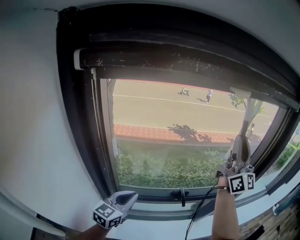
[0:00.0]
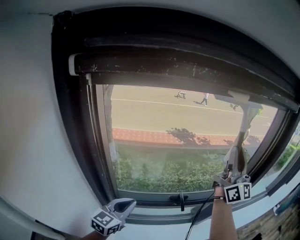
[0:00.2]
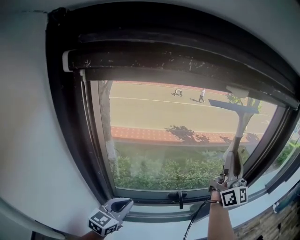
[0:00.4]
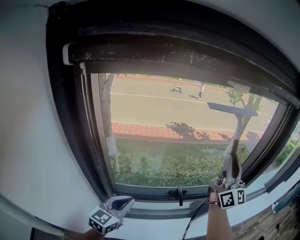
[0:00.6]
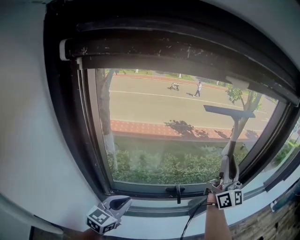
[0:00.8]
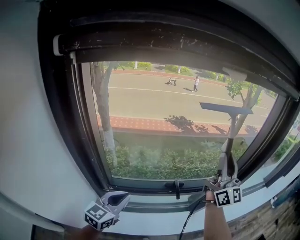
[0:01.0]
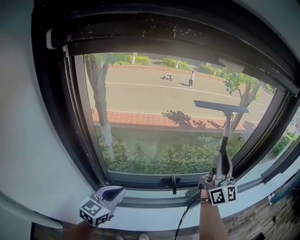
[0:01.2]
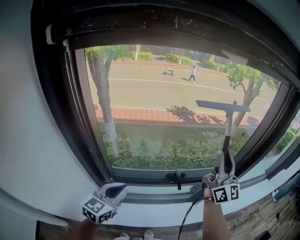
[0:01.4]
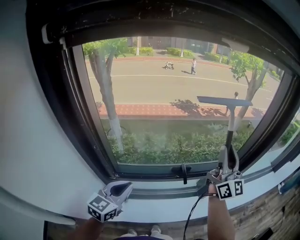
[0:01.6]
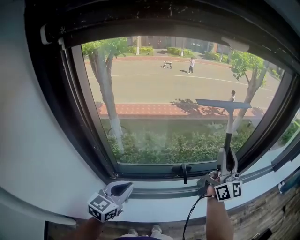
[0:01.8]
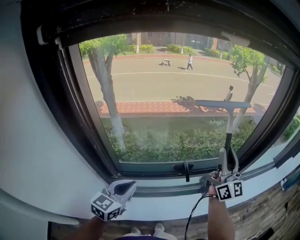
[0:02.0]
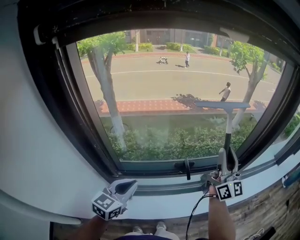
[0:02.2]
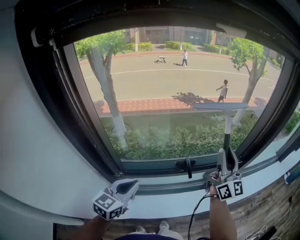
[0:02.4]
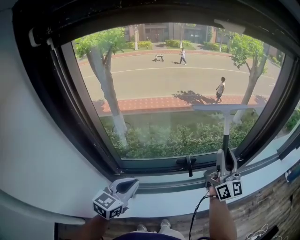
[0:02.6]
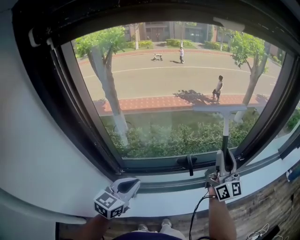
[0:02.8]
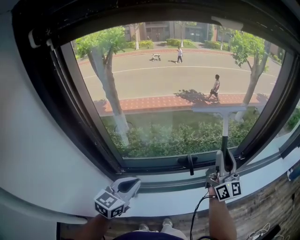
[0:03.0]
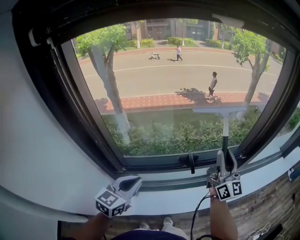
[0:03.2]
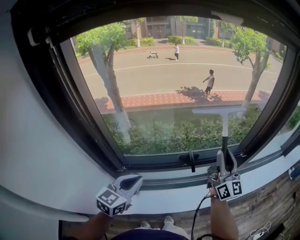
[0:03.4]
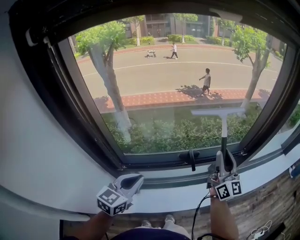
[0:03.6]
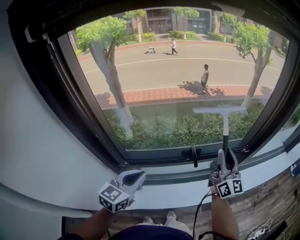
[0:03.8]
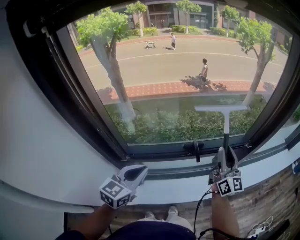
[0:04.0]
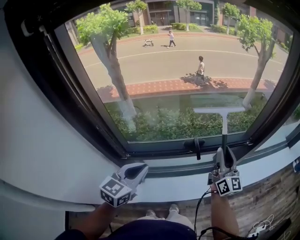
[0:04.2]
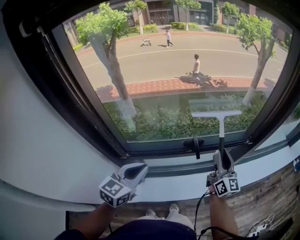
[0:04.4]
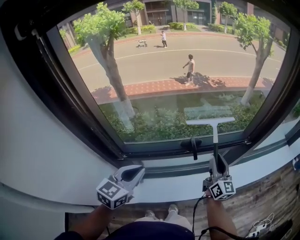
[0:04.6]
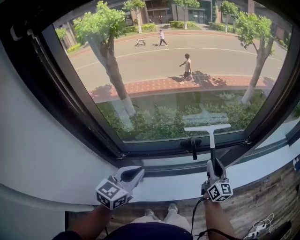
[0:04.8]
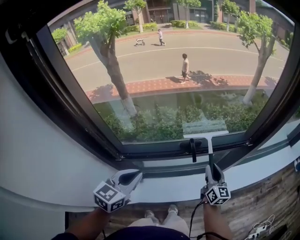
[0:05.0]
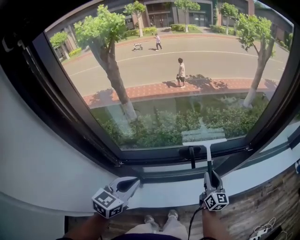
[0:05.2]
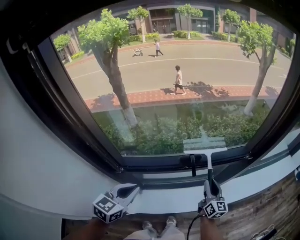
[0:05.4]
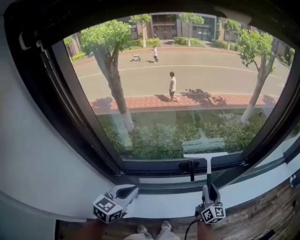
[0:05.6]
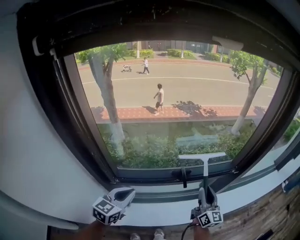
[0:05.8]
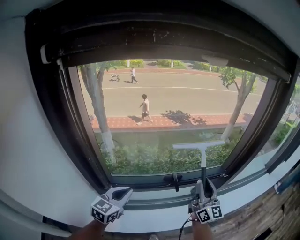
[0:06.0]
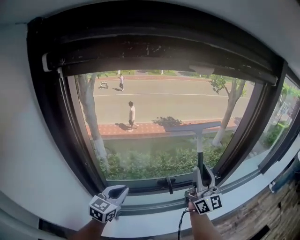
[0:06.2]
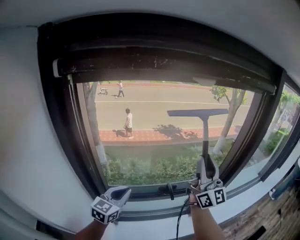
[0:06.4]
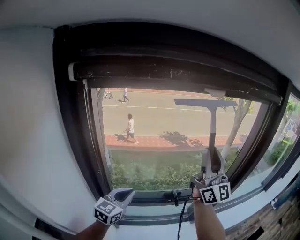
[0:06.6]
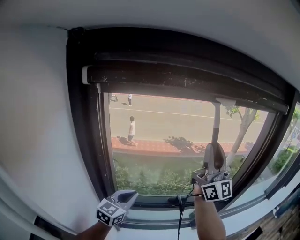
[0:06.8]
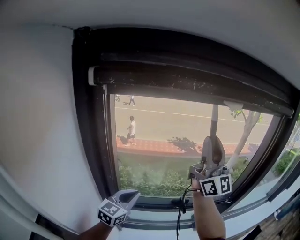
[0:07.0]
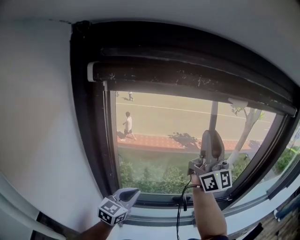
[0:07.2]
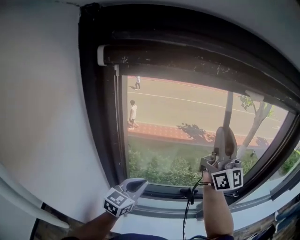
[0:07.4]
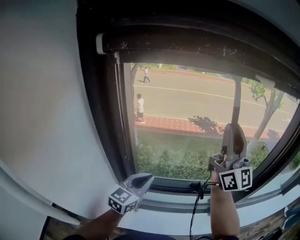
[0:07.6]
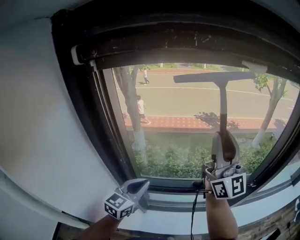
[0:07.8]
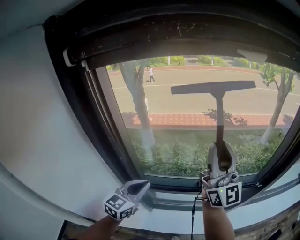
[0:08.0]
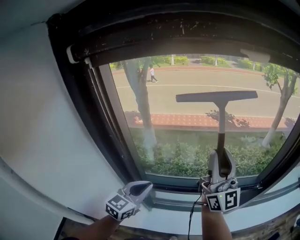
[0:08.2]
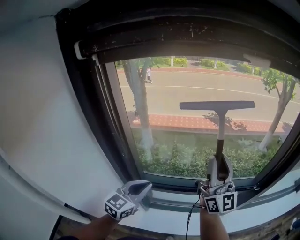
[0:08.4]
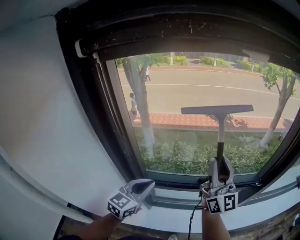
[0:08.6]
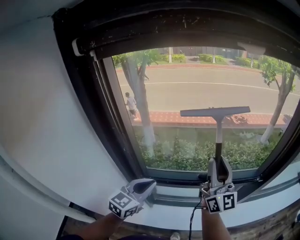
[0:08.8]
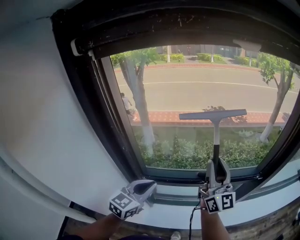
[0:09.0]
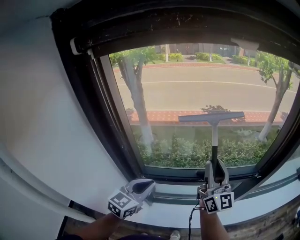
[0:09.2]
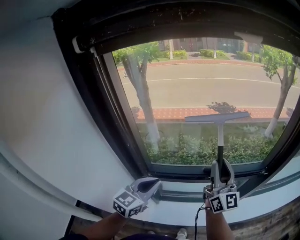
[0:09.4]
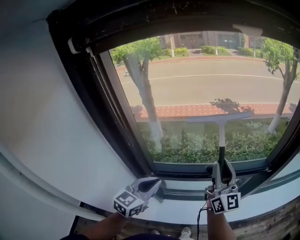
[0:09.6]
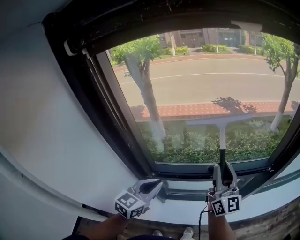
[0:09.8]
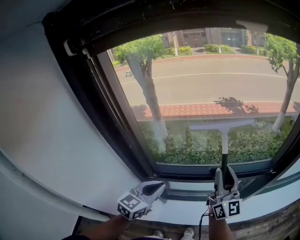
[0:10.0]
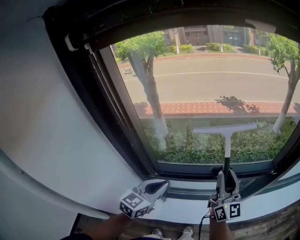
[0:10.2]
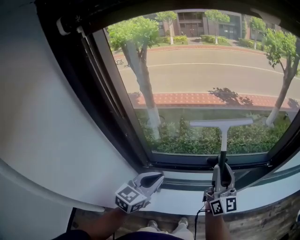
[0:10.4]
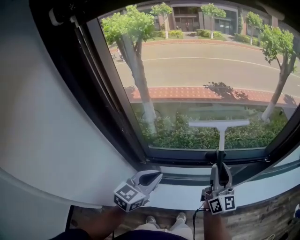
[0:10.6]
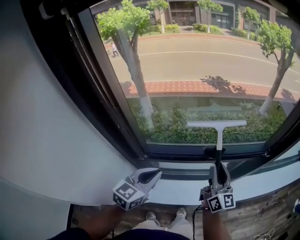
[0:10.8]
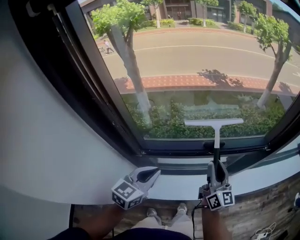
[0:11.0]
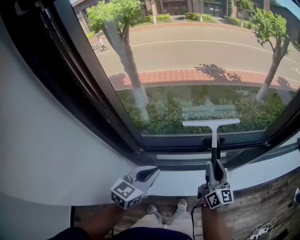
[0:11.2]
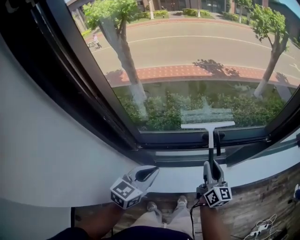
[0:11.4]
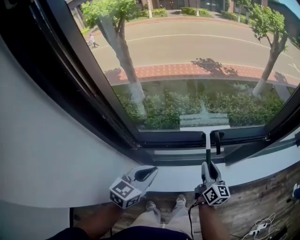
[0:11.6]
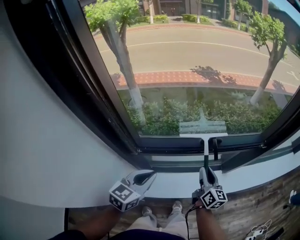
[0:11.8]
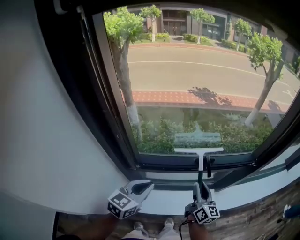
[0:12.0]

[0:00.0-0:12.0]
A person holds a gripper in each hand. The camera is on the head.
0:00.0 to 0:01.6: The right gripper heads downward, covering about 15 cm, while the left gripper moves approximately 5 cm.
0:01.6 to 0:03.0: The right gripper moves downward, approximately 10 cm.
0:03.0 to 0:04.4: The right gripper heads downward, covering roughly 10 cm.
0:04.4 to 0:06.0: The right gripper goes approximately 10 cm upward.
0:06.0 to 0:07.6: The left gripper shifts roughly 10 cm upward and to the left, while the right gripper shifts roughly 30 cm upward and to the left, and rotates roughly 30 degrees.
0:07.6 to 0:09.0: The left gripper is displaced backward by about 5 cm. Meanwhile the right gripper shifts some 20 cm downward.
0:09.0 to 0:10.4: The right gripper goes roughly 10 cm downward.
0:10.4 to 0:12.0: The right gripper travels downward by some 15 cm, and changes its angle by some 20 degrees. The left gripper travels downward by approximately 5 cm.

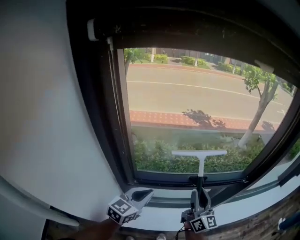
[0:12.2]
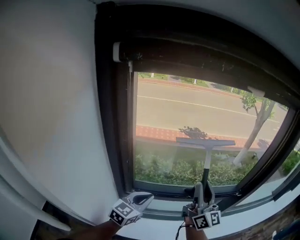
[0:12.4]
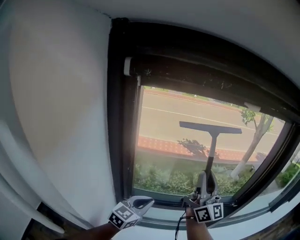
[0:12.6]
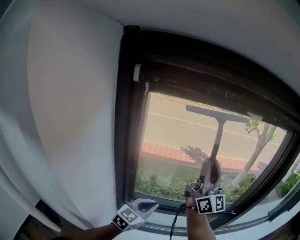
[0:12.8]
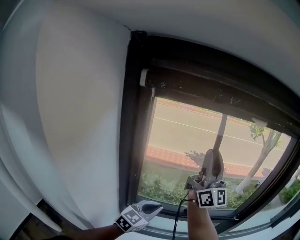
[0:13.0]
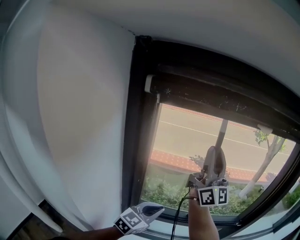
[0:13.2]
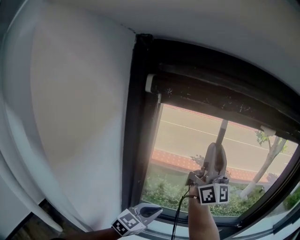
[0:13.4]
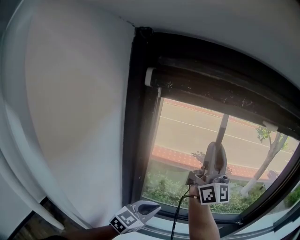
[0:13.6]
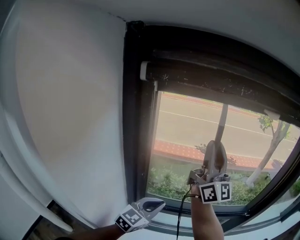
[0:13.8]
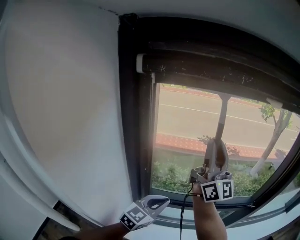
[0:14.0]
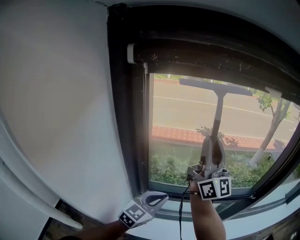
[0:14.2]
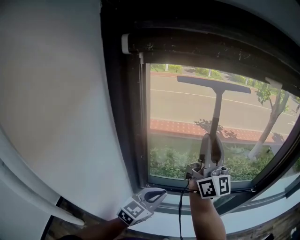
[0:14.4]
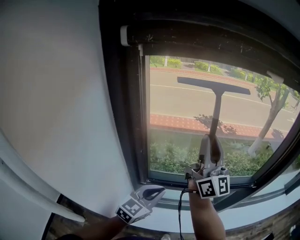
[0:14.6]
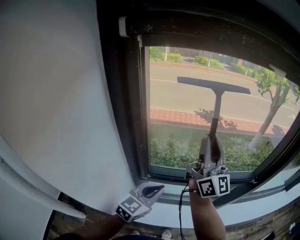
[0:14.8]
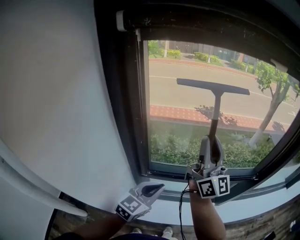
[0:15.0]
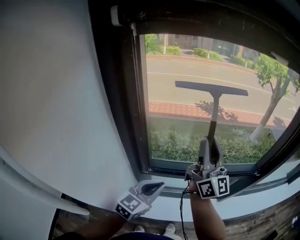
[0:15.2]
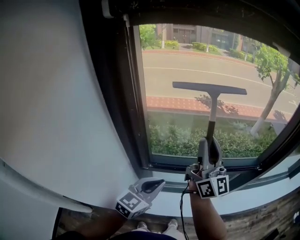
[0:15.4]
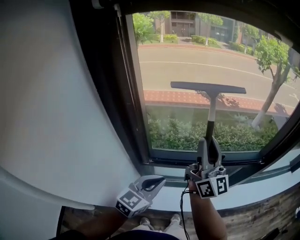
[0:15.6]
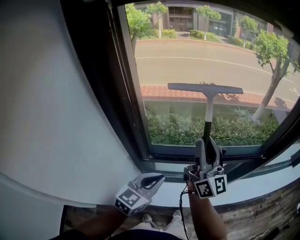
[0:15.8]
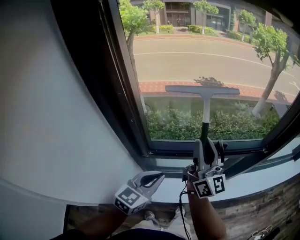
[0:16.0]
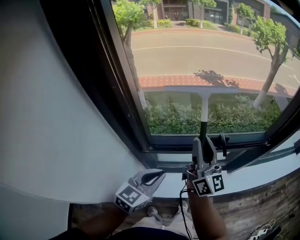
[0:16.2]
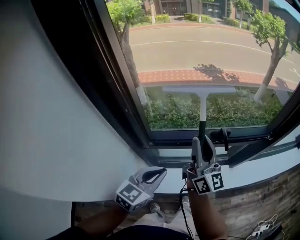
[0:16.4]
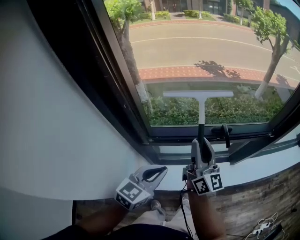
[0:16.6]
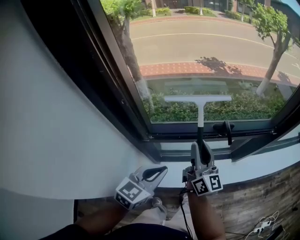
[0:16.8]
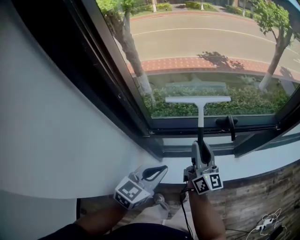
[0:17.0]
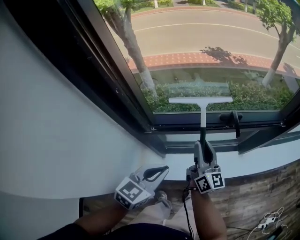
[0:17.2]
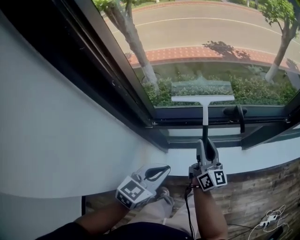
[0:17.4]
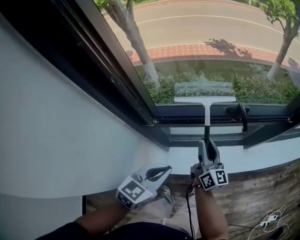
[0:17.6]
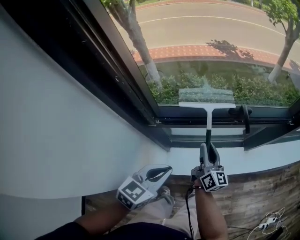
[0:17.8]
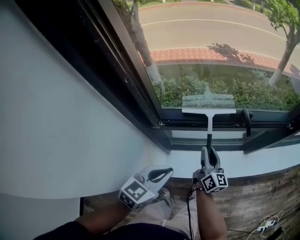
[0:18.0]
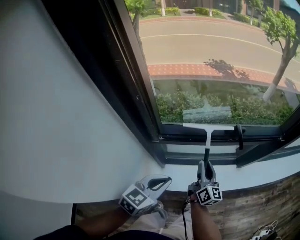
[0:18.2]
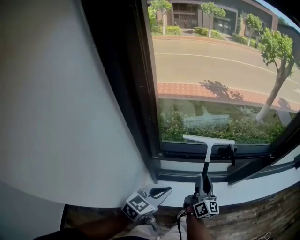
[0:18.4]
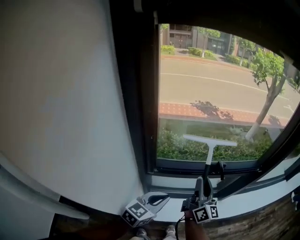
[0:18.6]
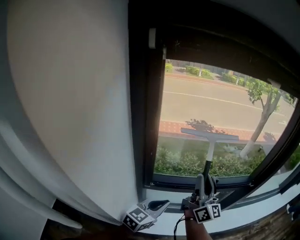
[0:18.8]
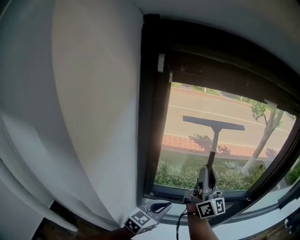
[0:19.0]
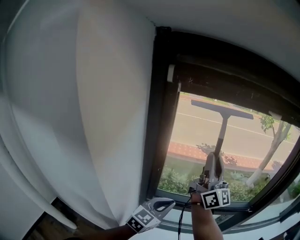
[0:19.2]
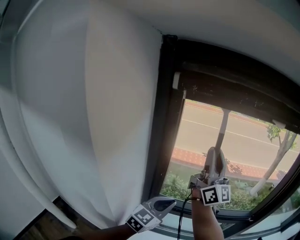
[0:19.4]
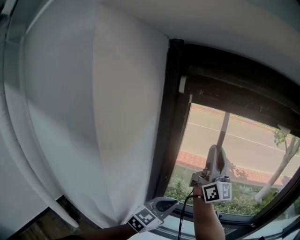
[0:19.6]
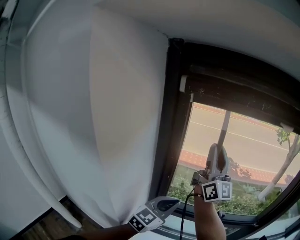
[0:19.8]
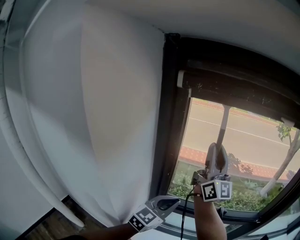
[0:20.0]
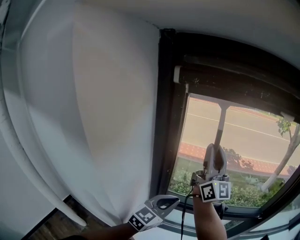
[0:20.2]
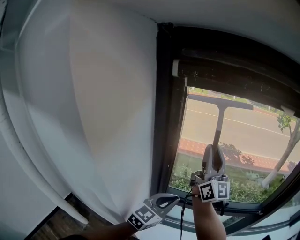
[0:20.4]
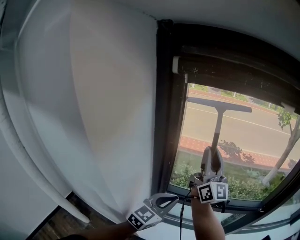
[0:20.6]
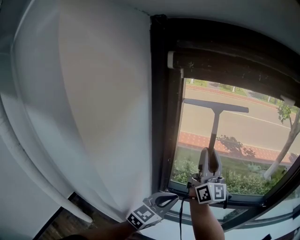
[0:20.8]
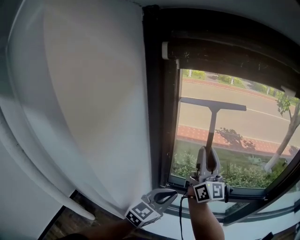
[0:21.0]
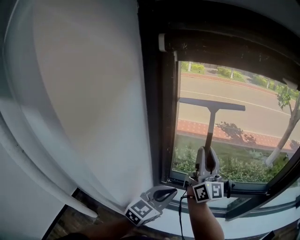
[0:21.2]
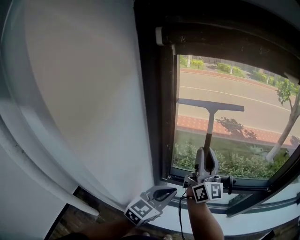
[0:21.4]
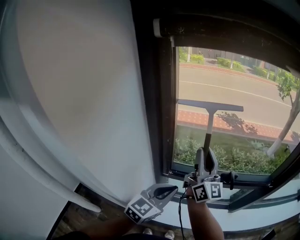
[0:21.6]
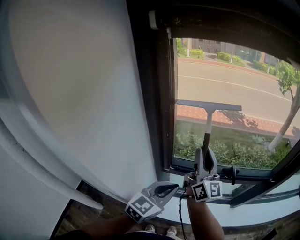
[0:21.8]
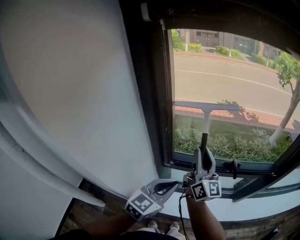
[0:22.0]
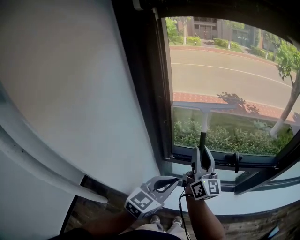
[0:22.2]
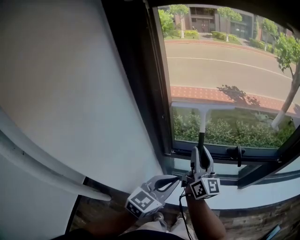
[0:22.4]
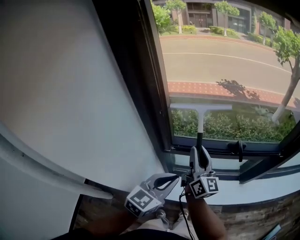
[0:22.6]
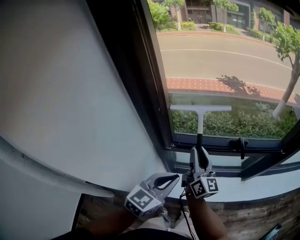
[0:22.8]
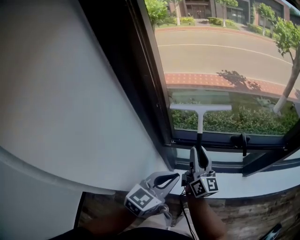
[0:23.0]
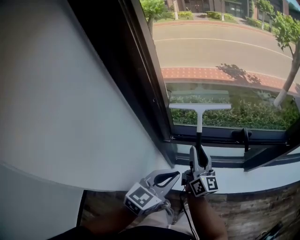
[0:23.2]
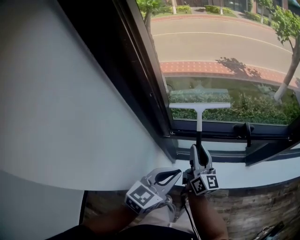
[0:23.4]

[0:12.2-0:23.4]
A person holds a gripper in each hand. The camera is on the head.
0:12.2 to 0:13.8: The right gripper is displaced upward by approximately 30 cm, and angles its fingers upward, by about 30 degrees, while the left gripper goes approximately 10 cm upward.
0:13.8 to 0:15.4: The left gripper is displaced downward by roughly 5 cm; the right gripper is displaced downward by roughly 15 cm.
0:15.4 to 0:17.0: The right gripper moves downward, some 25 cm, and turns by some 20 degrees. Meanwhile the left gripper shifts approximately 10 cm downward.
0:17.0 to 0:18.6: The right gripper shifts about 10 cm upward, while the left gripper reaches about 5 cm downward, then returns.
0:18.6 to 0:20.2: The right gripper moves upward, approximately 30 cm, and changes its angle by roughly 30 degrees; the left gripper heads upward, covering approximately 15 cm, and turns by roughly 20 degrees.
0:20.2 to 0:21.8: The right gripper travels downward by some 20 cm, while the left gripper goes about 10 cm downward and backward.
0:21.8 to 0:23.4: The left gripper travels downward by roughly 10 cm. Meanwhile the right gripper travels downward by approximately 20 cm, and rotates some 20 degrees.
